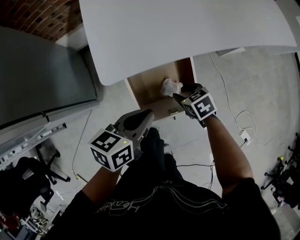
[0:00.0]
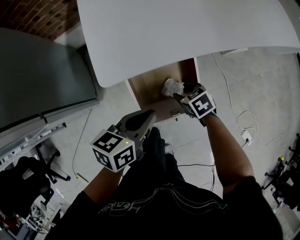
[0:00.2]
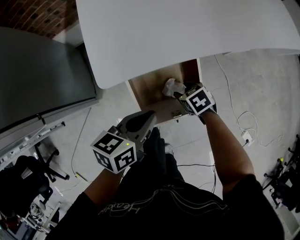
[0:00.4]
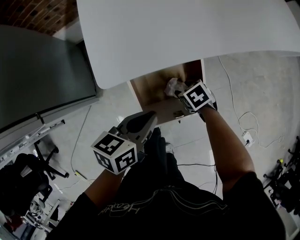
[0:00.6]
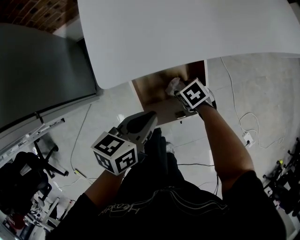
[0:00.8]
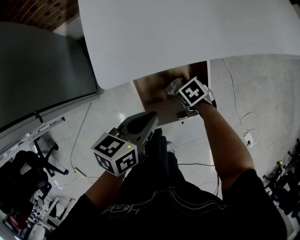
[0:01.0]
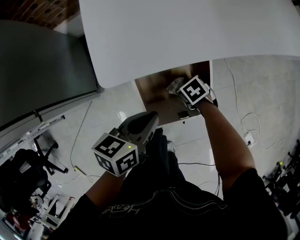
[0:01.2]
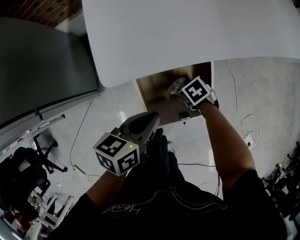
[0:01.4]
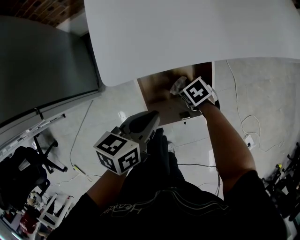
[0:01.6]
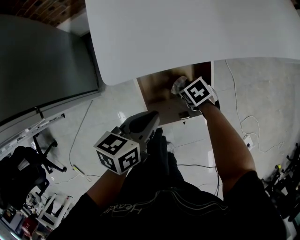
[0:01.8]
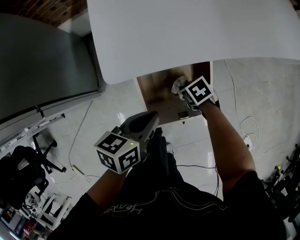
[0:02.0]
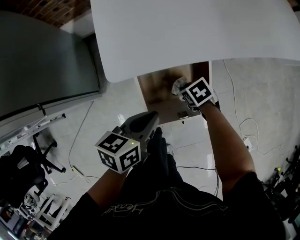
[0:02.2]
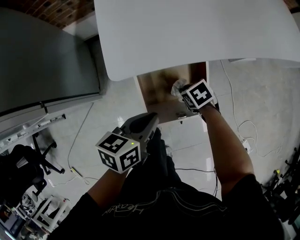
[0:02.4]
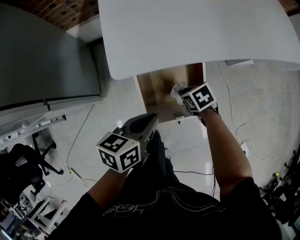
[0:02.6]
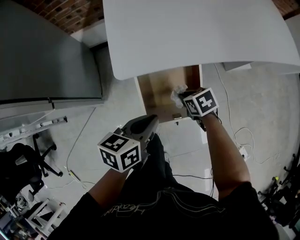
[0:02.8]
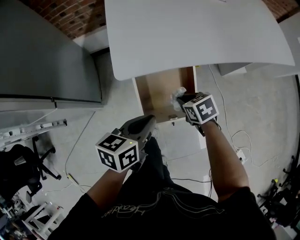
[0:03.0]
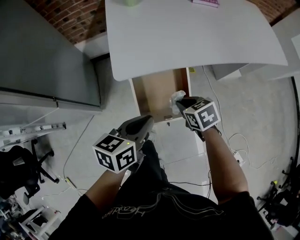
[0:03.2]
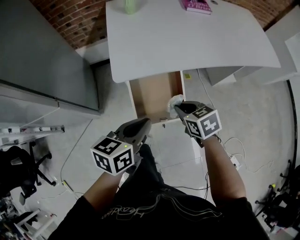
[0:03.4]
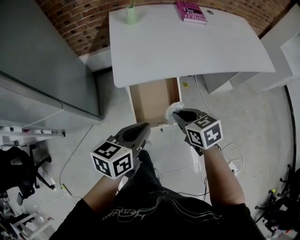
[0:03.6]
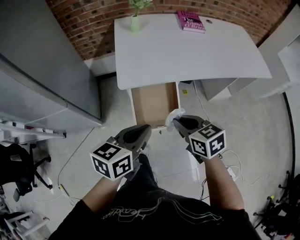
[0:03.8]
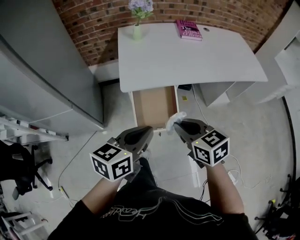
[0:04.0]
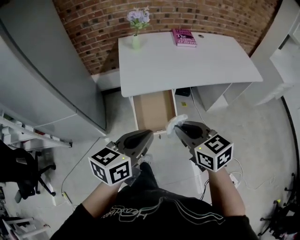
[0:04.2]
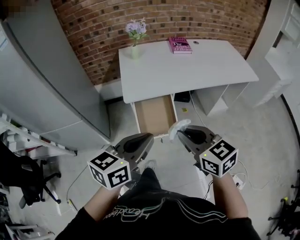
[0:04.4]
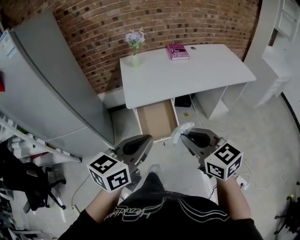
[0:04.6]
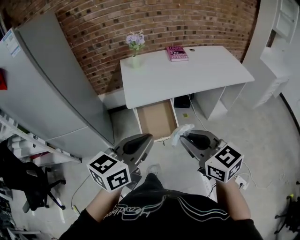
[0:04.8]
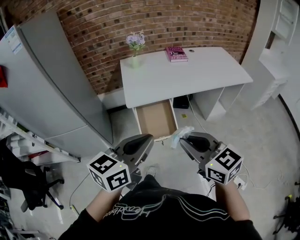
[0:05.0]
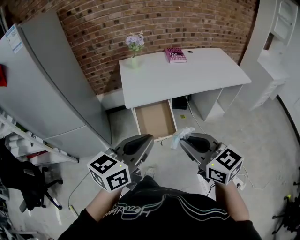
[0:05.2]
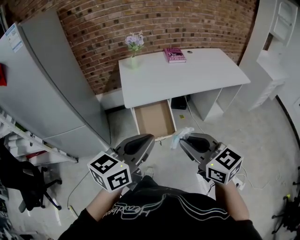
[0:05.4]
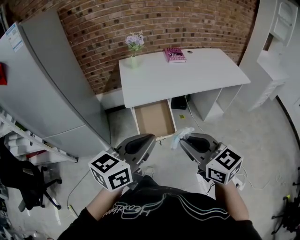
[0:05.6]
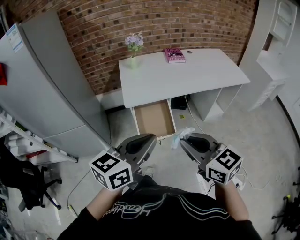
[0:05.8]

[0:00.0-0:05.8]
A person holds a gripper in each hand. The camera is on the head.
0:00.0 to 0:01.4: The right gripper heads downward, covering roughly 10 cm, and rotates approximately 20 degrees. The left gripper moves downward, roughly 10 cm.
0:01.4 to 0:02.8: The right gripper moves upward, about 15 cm, and closes up, while the left gripper goes about 5 cm upward.
0:02.8 to 0:04.4: The two grippers go roughly 50 cm upward and backward. The left gripper changes its angle by some 30 degrees; the right gripper tilts its fingers roughly 40 degrees upward.
0:04.4 to 0:05.8: The two grippers go roughly 10 cm backward and upward.

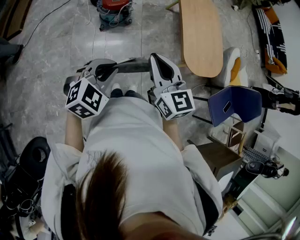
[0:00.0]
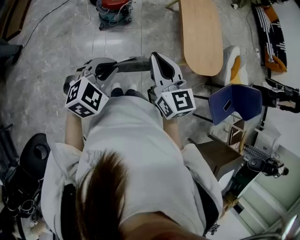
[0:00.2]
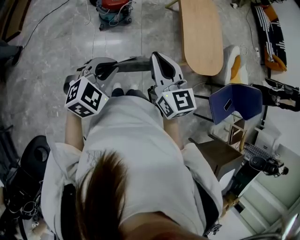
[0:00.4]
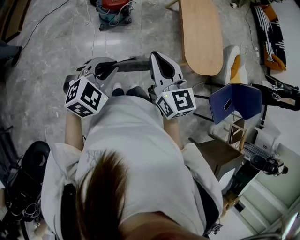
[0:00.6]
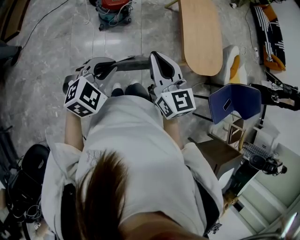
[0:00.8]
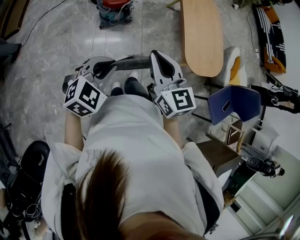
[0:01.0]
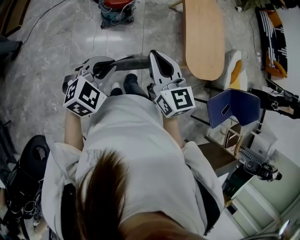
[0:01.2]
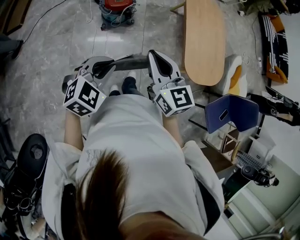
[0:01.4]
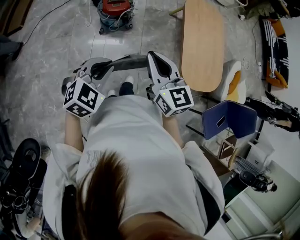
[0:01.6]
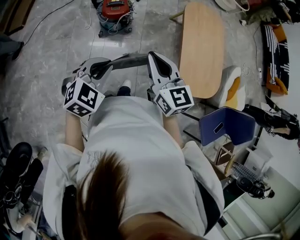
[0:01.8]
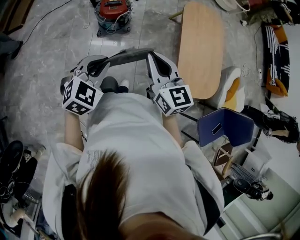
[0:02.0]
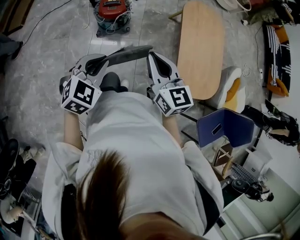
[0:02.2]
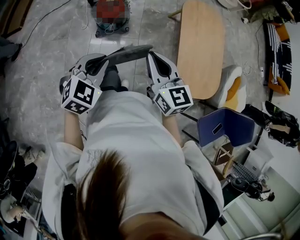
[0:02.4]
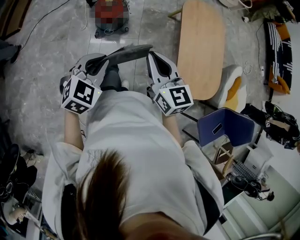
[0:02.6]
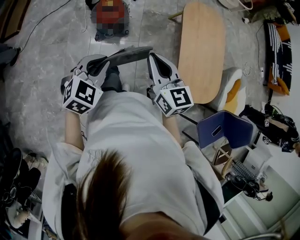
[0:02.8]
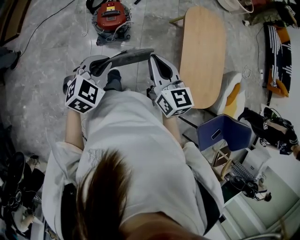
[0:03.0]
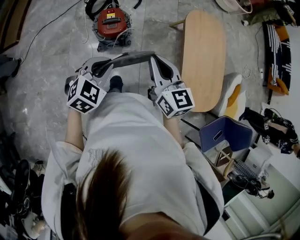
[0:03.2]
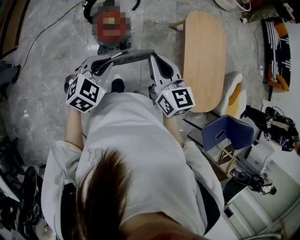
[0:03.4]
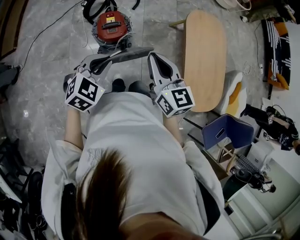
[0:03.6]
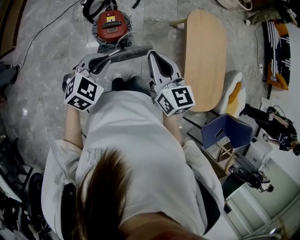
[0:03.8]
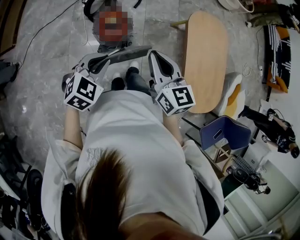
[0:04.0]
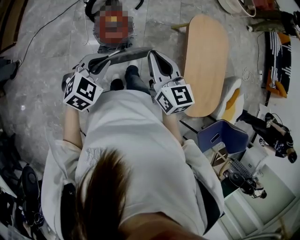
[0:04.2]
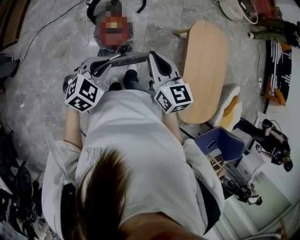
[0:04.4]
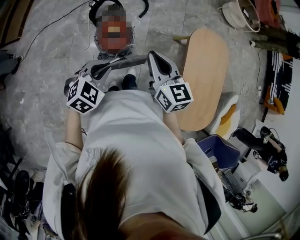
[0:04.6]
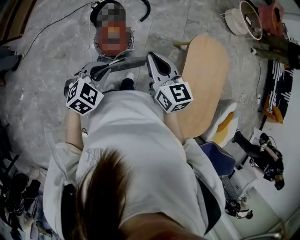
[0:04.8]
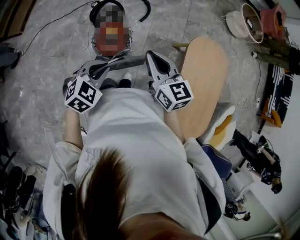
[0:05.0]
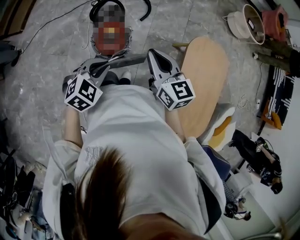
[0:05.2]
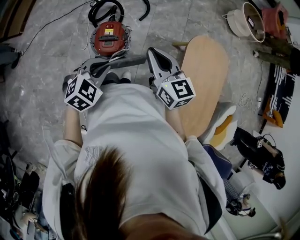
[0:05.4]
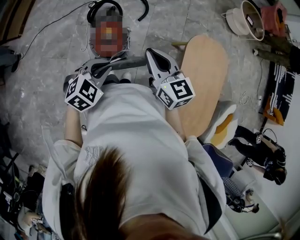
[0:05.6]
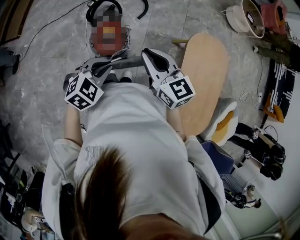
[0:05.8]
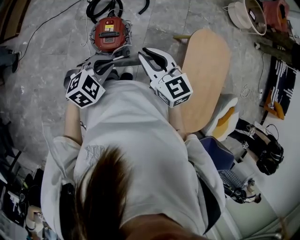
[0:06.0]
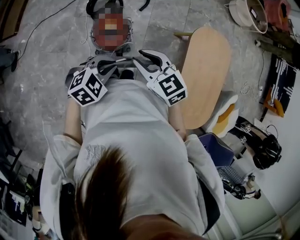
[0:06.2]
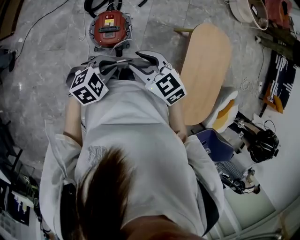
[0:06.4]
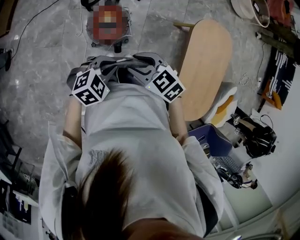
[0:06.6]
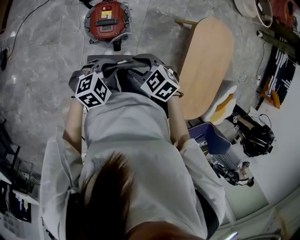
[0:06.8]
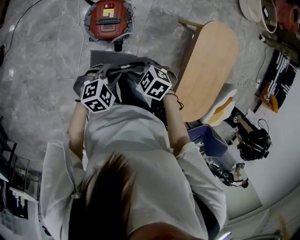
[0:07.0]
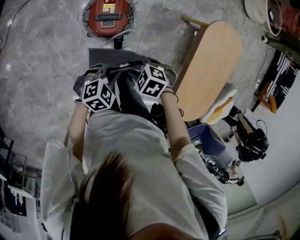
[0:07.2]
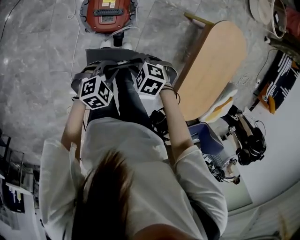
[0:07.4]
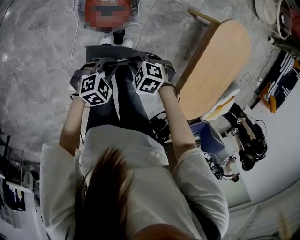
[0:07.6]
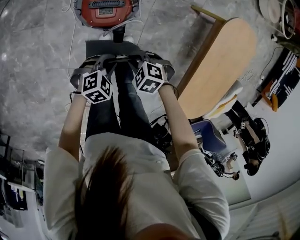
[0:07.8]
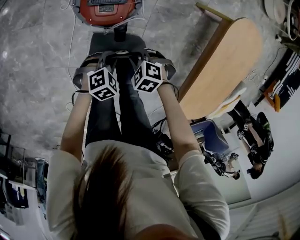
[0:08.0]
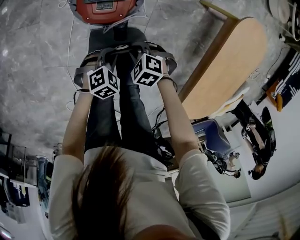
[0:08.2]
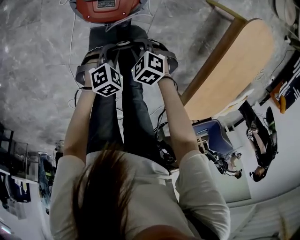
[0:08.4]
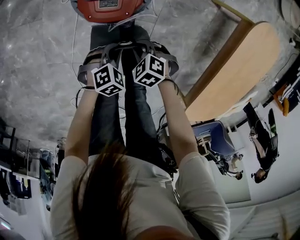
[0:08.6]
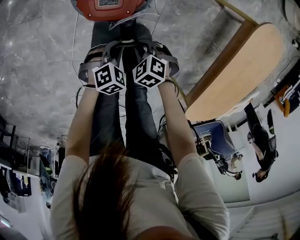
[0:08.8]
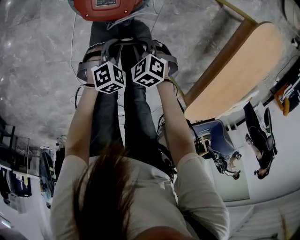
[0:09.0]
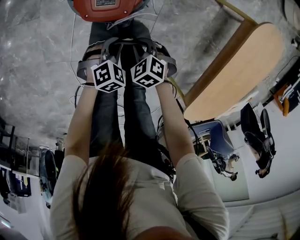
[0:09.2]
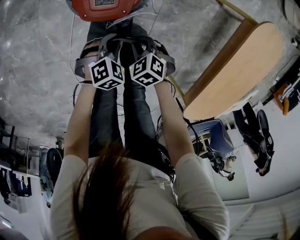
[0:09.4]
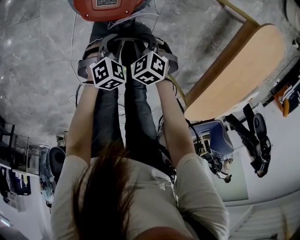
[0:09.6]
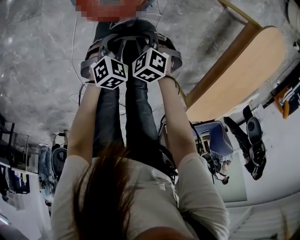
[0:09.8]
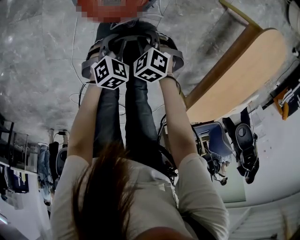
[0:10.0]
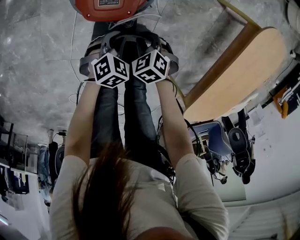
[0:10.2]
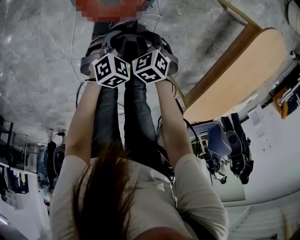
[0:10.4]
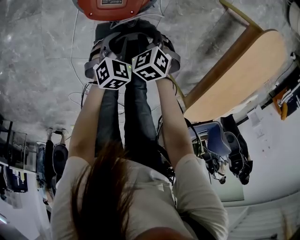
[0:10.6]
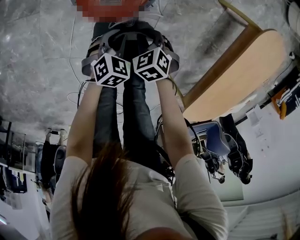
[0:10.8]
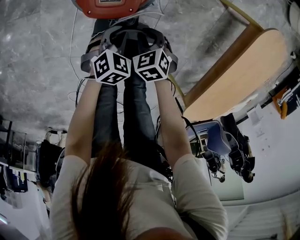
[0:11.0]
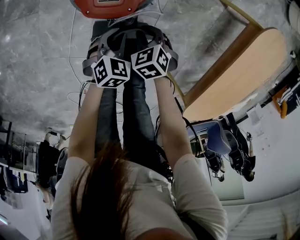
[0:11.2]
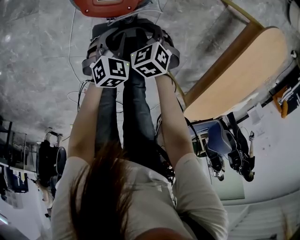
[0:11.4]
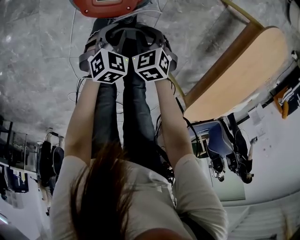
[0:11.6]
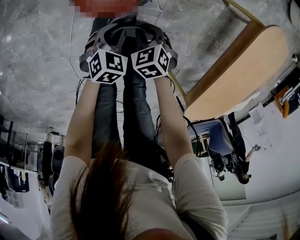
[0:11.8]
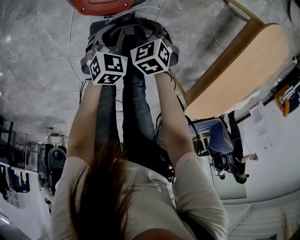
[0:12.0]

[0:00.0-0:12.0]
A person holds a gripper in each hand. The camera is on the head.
0:00.0 to 0:01.6: The two grippers go roughly 10 cm forward.
0:01.6 to 0:03.0: Both grippers travel together forward, about 20 cm.
0:03.0 to 0:04.4: Both grippers move forward and to the left, about 15 cm.
0:04.4 to 0:06.0: The right gripper travels forward by roughly 10 cm, and changes its angle by about 20 degrees; the left gripper travels forward and to the right by about 10 cm.
0:06.0 to 0:07.6: The two grippers go about 35 cm downward. The right gripper angles its fingers downward, by approximately 40 degrees, and opens, then closes once more.
0:07.6 to 0:09.0: Both grippers move downward, approximately 20 cm.
0:09.0 to 0:10.4: The grippers make only small movements.
0:10.4 to 0:12.0: The grippers move only a little.

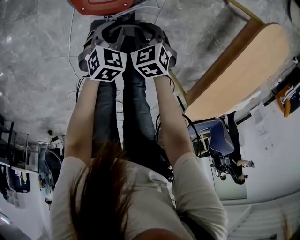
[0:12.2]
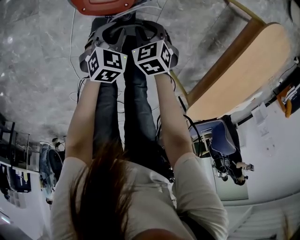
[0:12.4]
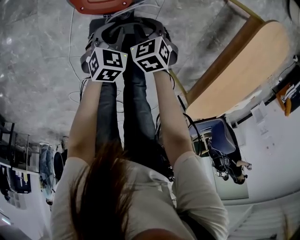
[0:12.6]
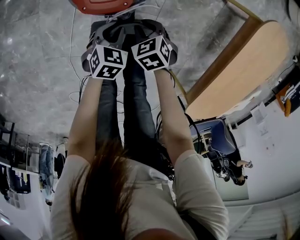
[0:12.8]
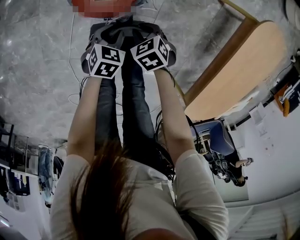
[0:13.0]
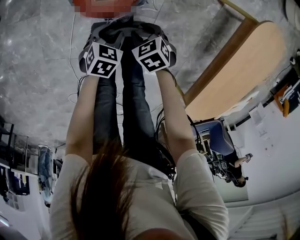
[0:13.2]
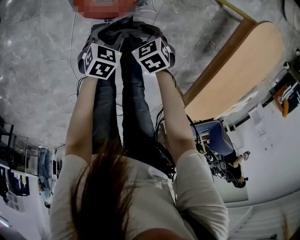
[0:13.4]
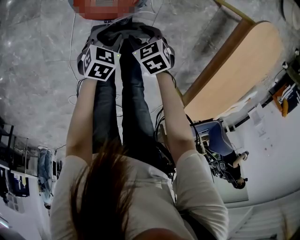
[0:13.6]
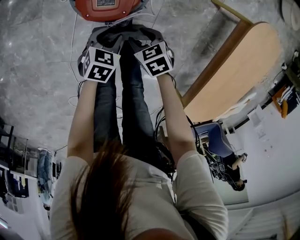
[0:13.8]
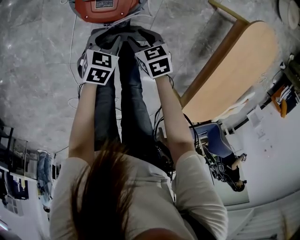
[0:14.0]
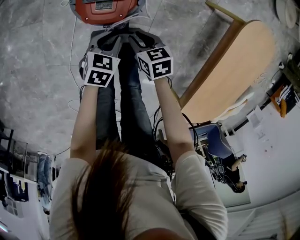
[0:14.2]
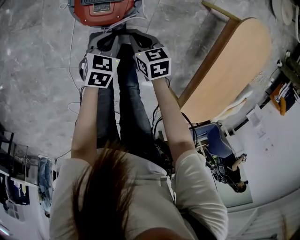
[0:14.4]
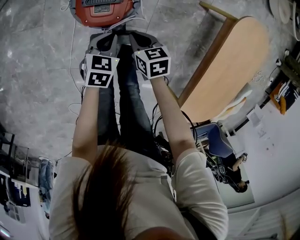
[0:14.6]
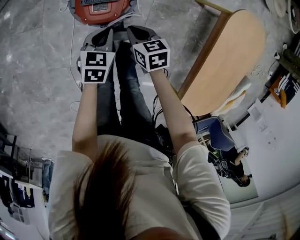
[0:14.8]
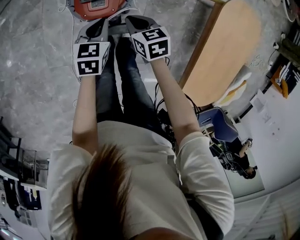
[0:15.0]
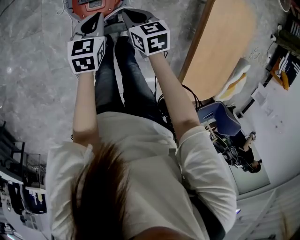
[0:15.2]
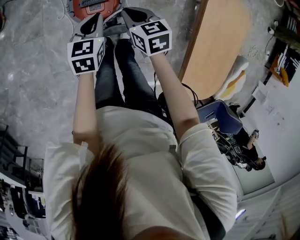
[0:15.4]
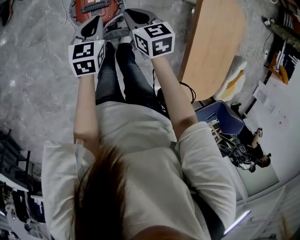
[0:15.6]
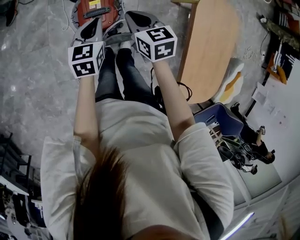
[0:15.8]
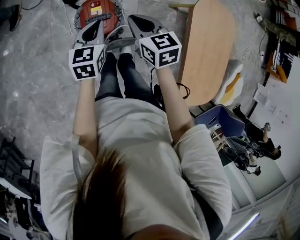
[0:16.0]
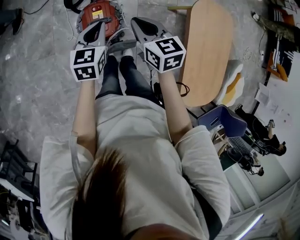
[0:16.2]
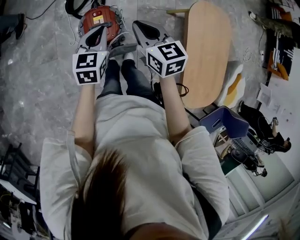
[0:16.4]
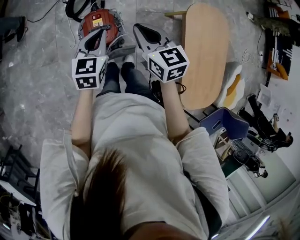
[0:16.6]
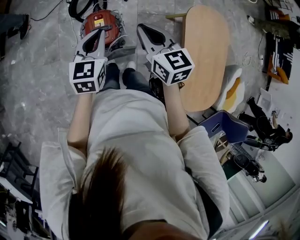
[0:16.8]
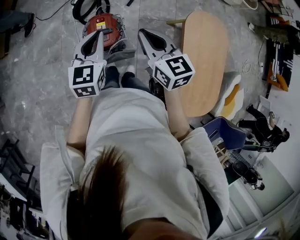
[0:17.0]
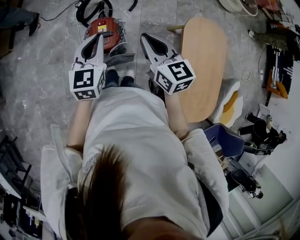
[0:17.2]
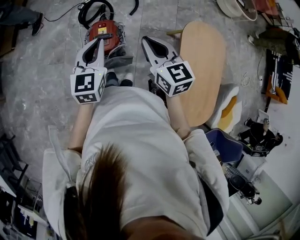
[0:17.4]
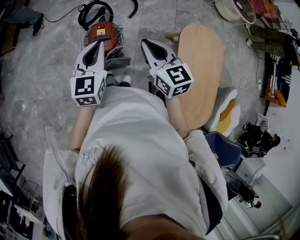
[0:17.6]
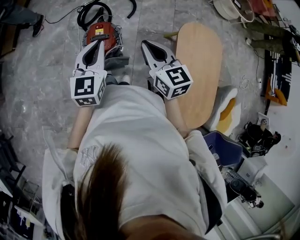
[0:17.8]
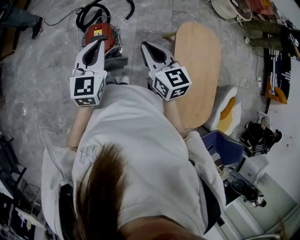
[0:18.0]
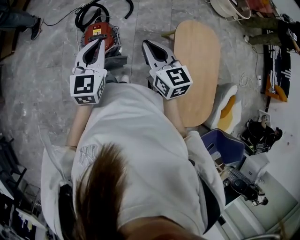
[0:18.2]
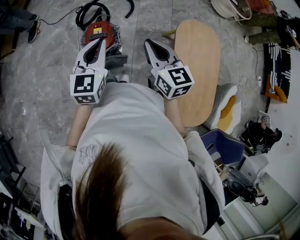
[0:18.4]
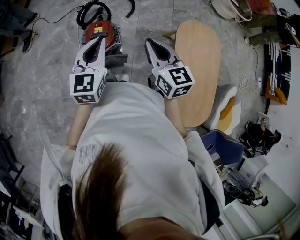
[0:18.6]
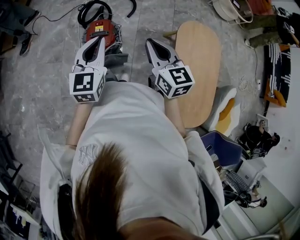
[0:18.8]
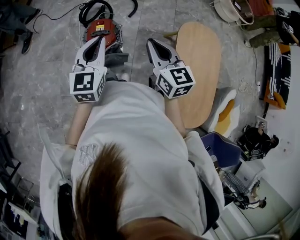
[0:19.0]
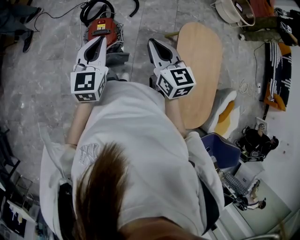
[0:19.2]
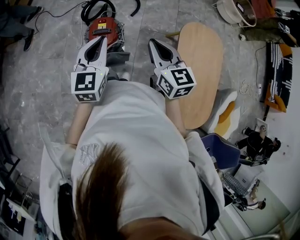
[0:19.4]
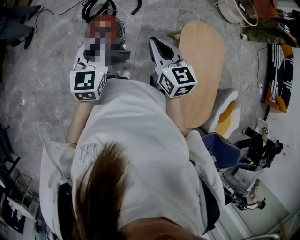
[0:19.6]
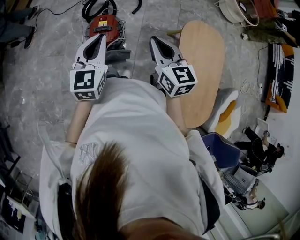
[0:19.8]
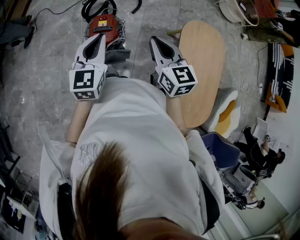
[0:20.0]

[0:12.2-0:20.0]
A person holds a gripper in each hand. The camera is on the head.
0:12.2 to 0:13.8: The right gripper opens.
0:13.8 to 0:15.4: The grippers both shift upward by about 25 cm. The left gripper turns by about 30 degrees, and closes up, while the right gripper turns by roughly 30 degrees, and closes its fingers.
0:15.4 to 0:16.8: Both grippers move upward, some 25 cm. The right gripper turns by about 20 degrees.
0:16.8 to 0:18.4: The right gripper is displaced backward, to the right and upward by about 15 cm, while the left gripper moves backward, upward and to the right, some 15 cm.
0:18.4 to 0:20.0: The grippers stay close to where they were, moving slightly.
